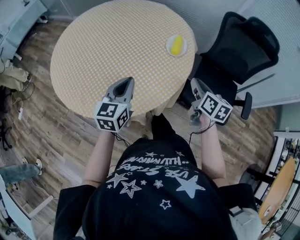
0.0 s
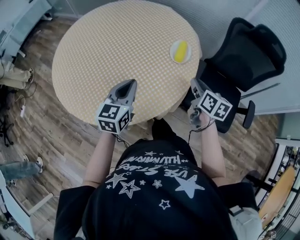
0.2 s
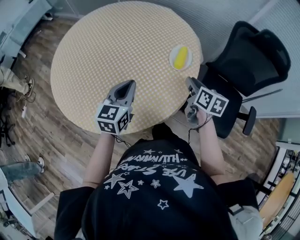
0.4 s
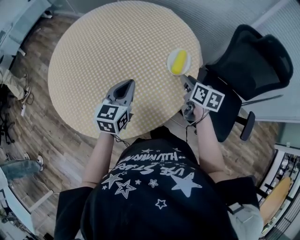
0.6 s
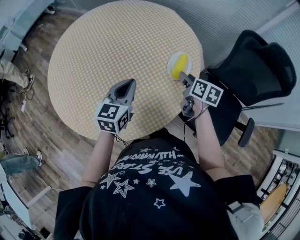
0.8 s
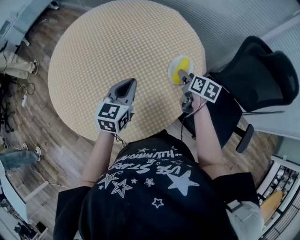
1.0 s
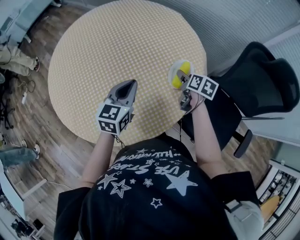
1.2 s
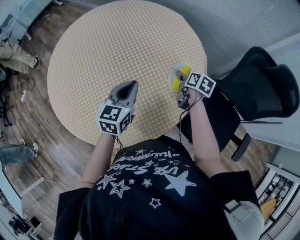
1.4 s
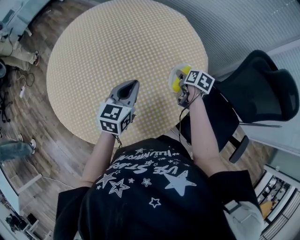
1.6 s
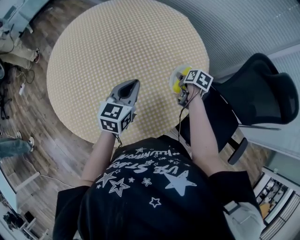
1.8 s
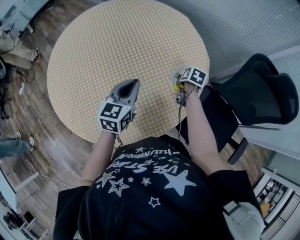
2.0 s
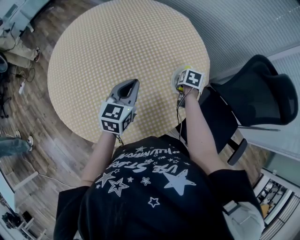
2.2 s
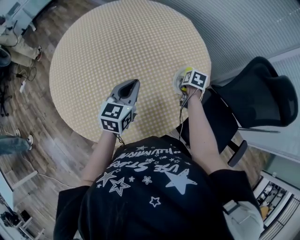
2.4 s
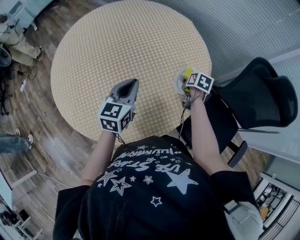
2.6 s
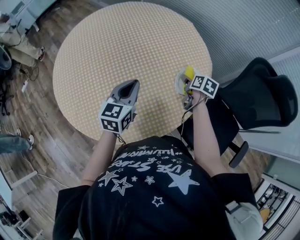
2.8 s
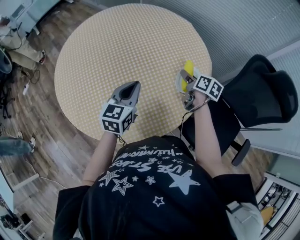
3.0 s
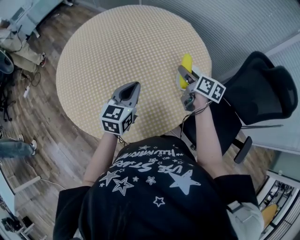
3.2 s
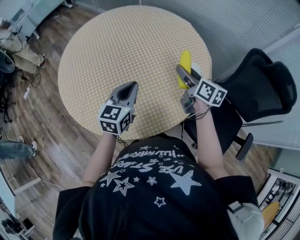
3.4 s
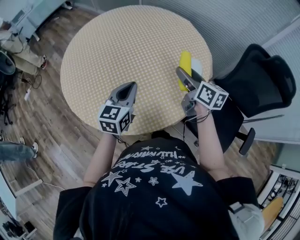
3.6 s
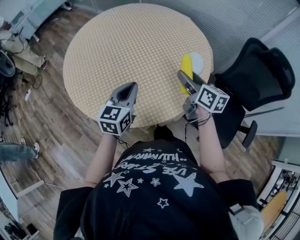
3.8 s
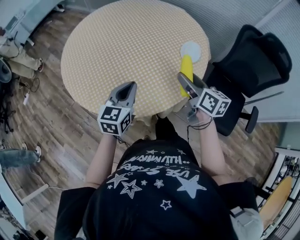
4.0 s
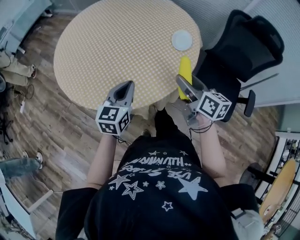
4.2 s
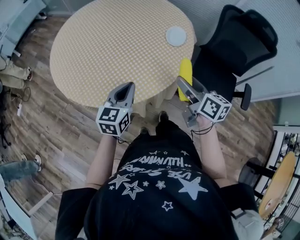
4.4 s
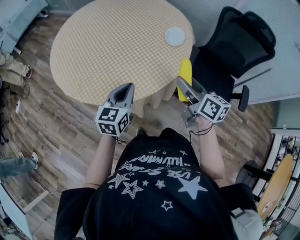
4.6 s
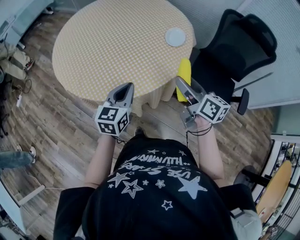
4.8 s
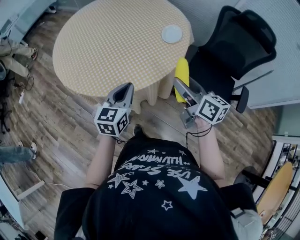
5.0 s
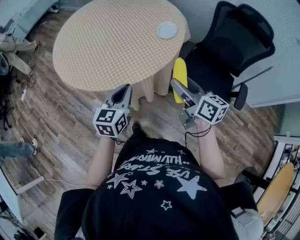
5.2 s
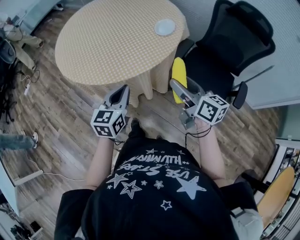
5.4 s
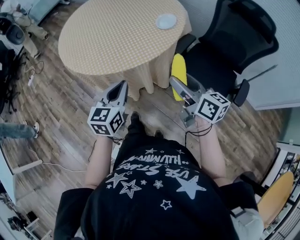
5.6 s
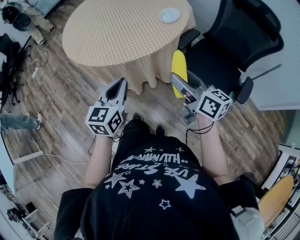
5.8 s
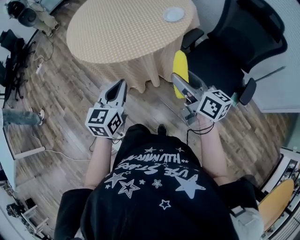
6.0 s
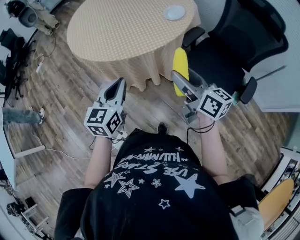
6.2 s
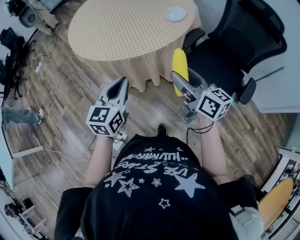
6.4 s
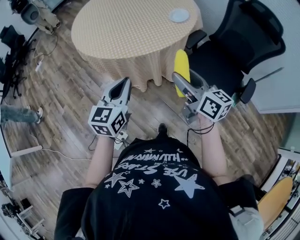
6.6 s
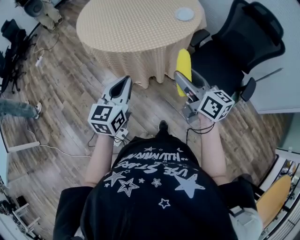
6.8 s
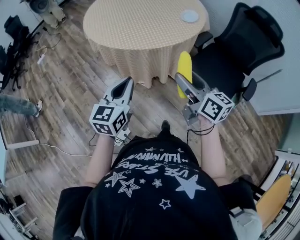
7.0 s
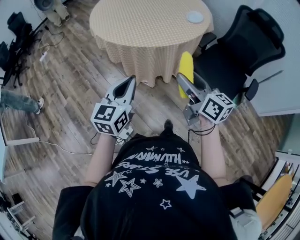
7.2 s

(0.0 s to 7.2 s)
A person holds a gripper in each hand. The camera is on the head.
0.0 s - 1.4 s: The left gripper goes some 20 cm forward. Meanwhile the right gripper goes approximately 30 cm forward and downward, swivels roughly 30 degrees, and opens up.
2.8 s - 4.4 s: The left gripper heads backward, covering roughly 25 cm. The right gripper moves backward and upward, about 40 cm, and tips its fingers upward by roughly 30 degrees.
4.4 s - 5.8 s: The grippers both shift backward and to the right by about 20 cm. The right gripper changes its angle by some 20 degrees.
5.8 s - 7.2 s: The grippers both shift to the left and backward by some 20 cm.

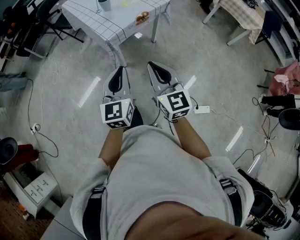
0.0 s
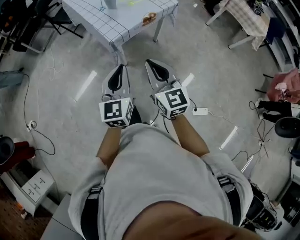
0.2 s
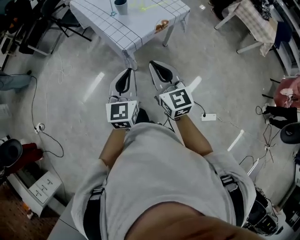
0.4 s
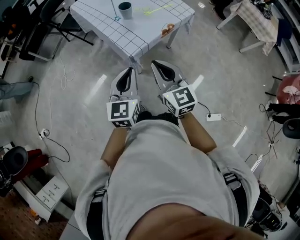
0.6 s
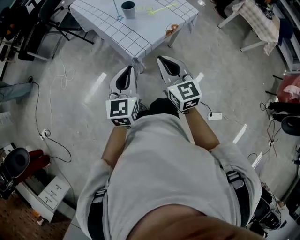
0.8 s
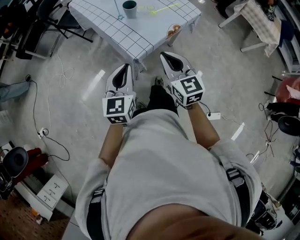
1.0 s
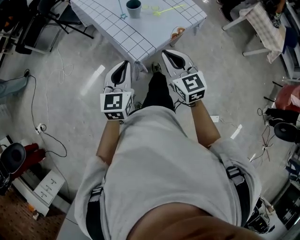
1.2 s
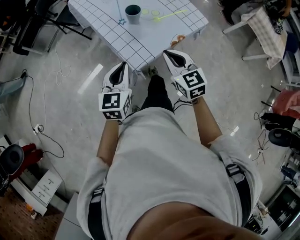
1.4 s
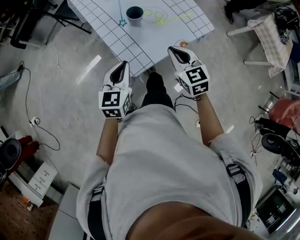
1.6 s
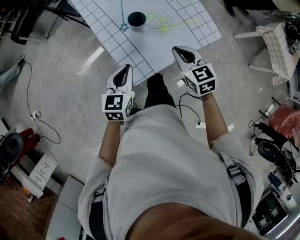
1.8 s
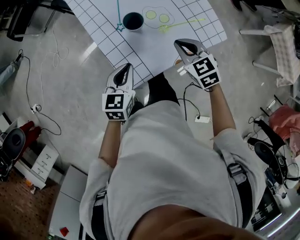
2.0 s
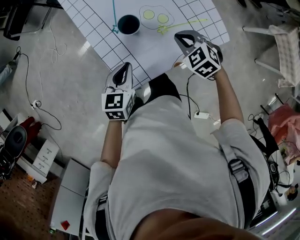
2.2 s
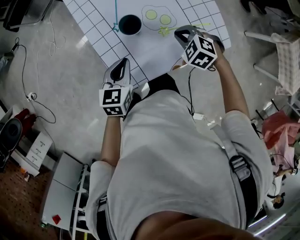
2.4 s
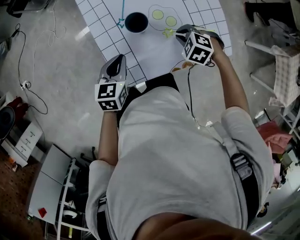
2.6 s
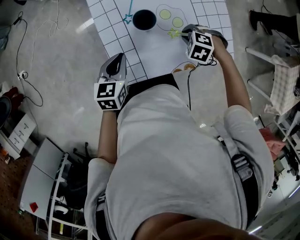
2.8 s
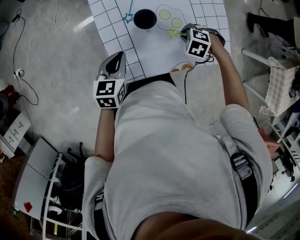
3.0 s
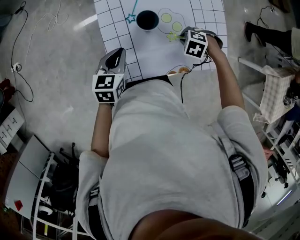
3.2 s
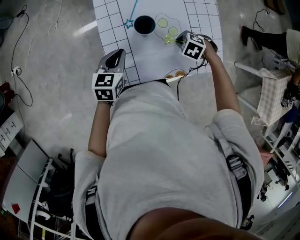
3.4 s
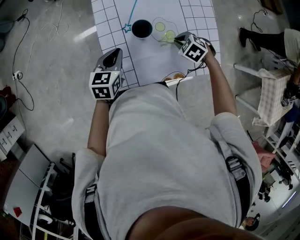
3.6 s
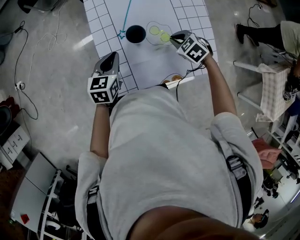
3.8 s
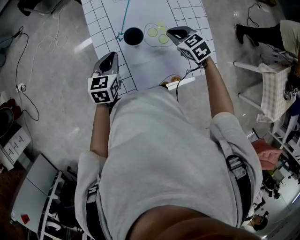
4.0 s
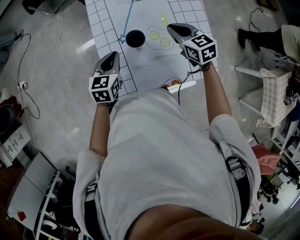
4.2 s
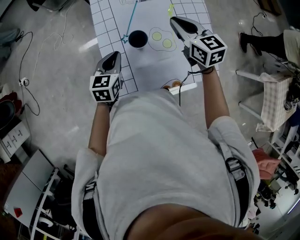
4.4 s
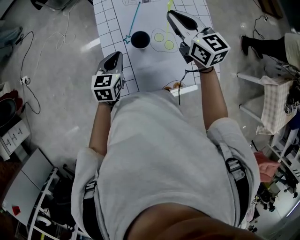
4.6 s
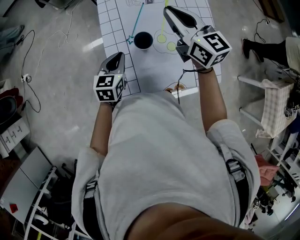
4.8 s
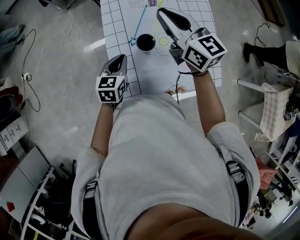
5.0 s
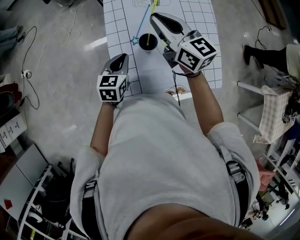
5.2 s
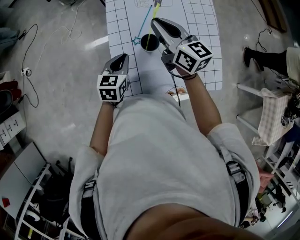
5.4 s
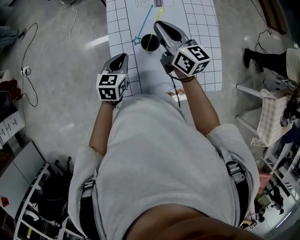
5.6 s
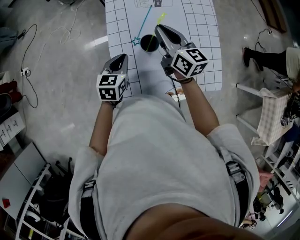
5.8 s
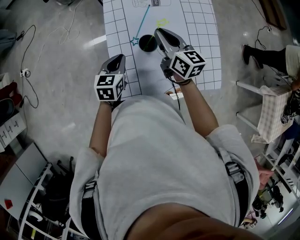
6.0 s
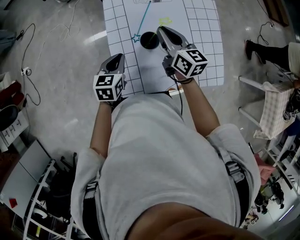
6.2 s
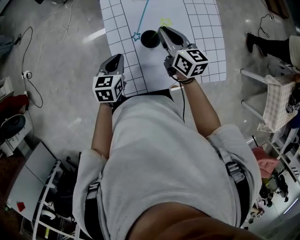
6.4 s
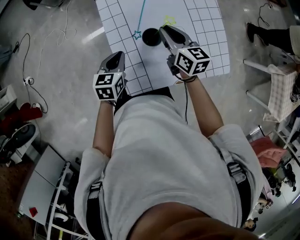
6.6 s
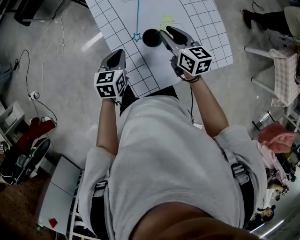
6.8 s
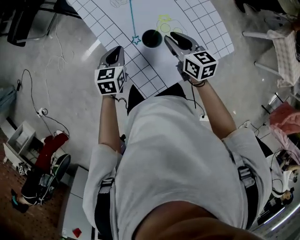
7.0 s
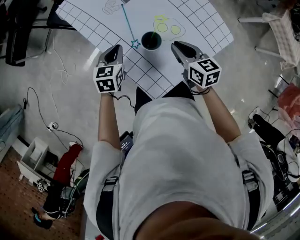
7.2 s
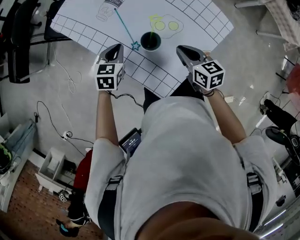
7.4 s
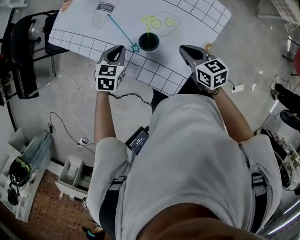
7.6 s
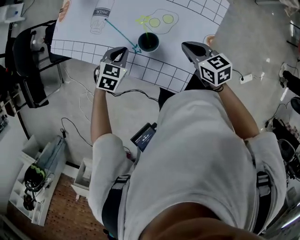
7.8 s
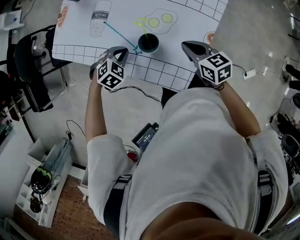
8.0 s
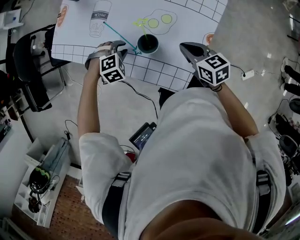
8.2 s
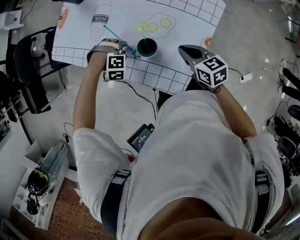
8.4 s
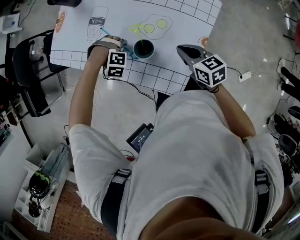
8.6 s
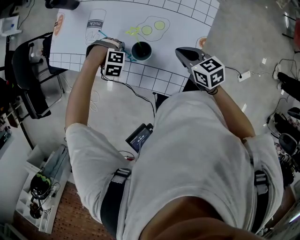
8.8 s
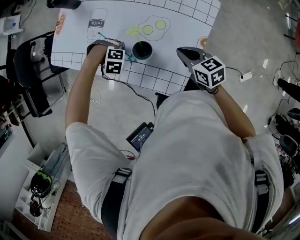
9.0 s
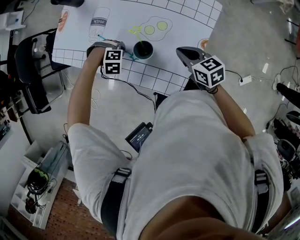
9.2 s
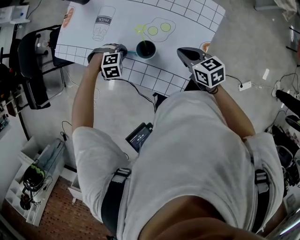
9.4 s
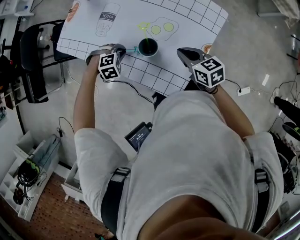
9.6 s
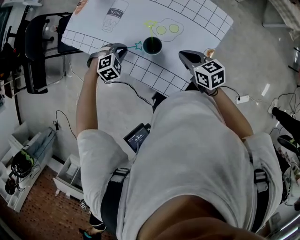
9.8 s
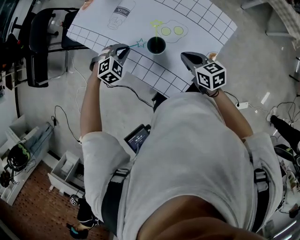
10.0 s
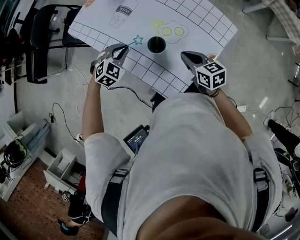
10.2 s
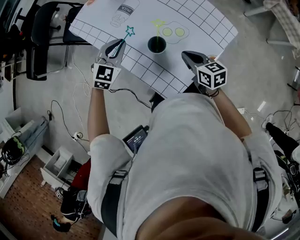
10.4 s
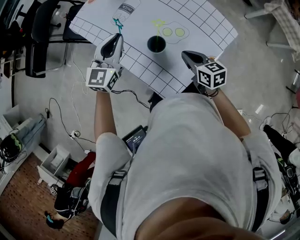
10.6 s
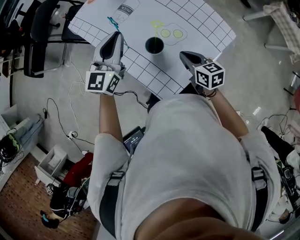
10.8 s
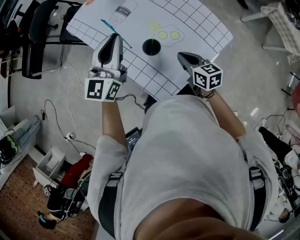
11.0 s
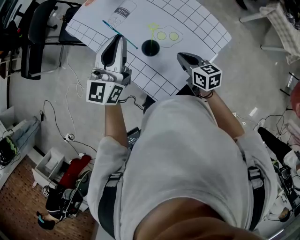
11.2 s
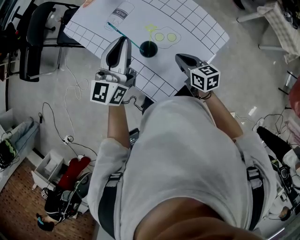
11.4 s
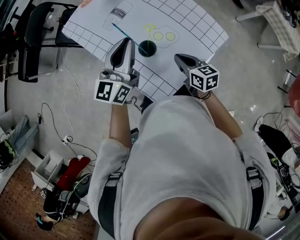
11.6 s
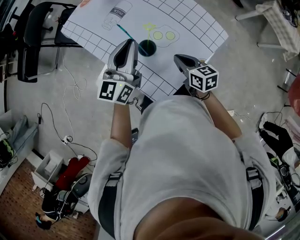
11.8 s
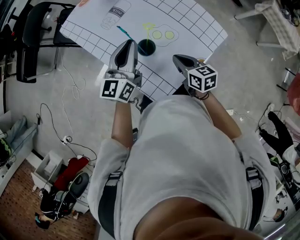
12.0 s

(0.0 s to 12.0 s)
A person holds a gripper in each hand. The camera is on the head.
0.0 s - 1.6 s: Both grippers are carried forward, approximately 40 cm. The right gripper swivels roughly 30 degrees.
1.6 s - 3.0 s: The left gripper moves about 15 cm, and changes its angle by roughly 30 degrees. The right gripper travels downward by roughly 20 cm, and points its fingers approximately 50 degrees further downward.
3.0 s - 4.4 s: The left gripper changes place by roughly 5 cm. The right gripper heads upward, covering approximately 25 cm, and angles its fingers upward, by about 60 degrees.
4.4 s - 6.0 s: The right gripper shifts approximately 10 cm to the left, goes upward and returns, roughly 10 cm each way, and rotates some 20 degrees.
6.0 s - 7.6 s: The right gripper changes place by roughly 15 cm, rotates approximately 40 degrees, and opens and closes again; the left gripper moves roughly 15 cm, and rotates approximately 60 degrees.
7.6 s - 9.0 s: The left gripper shifts roughly 10 cm downward, rolls clockwise, seen from behind, by approximately 90 degrees, and opens, then closes again.
9.0 s - 10.4 s: The left gripper shifts about 20 cm upward, and angles its fingers upward, by about 60 degrees.
10.4 s - 12.0 s: The left gripper goes approximately 10 cm upward and to the right, and points its fingers some 30 degrees further upward.

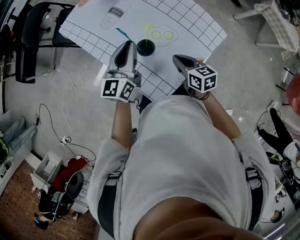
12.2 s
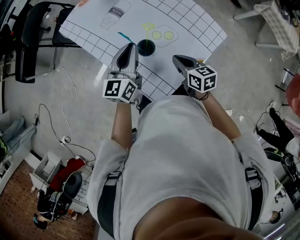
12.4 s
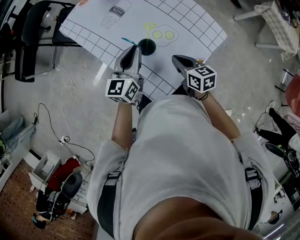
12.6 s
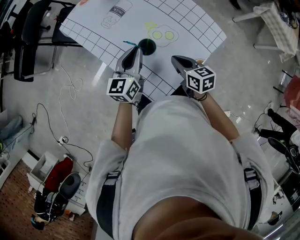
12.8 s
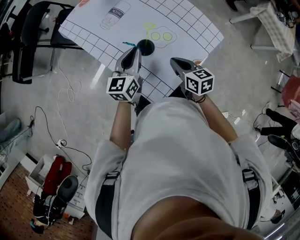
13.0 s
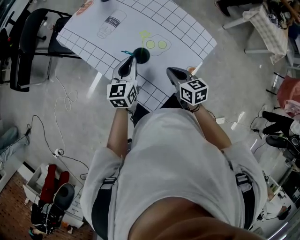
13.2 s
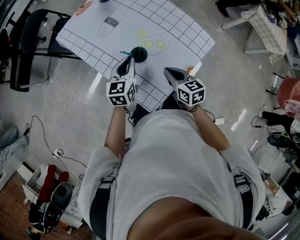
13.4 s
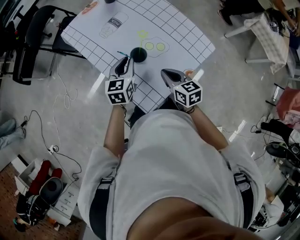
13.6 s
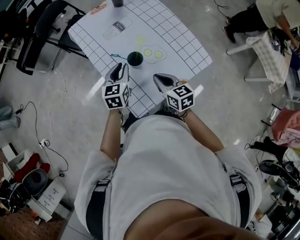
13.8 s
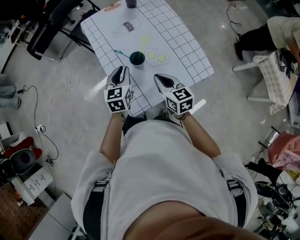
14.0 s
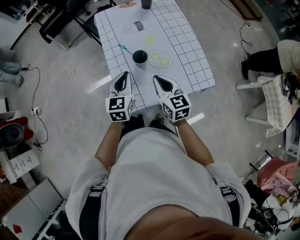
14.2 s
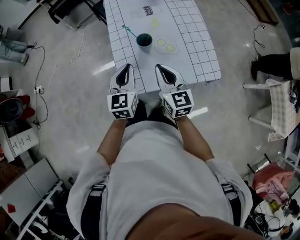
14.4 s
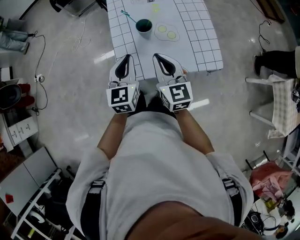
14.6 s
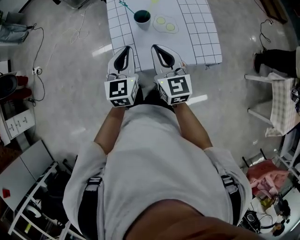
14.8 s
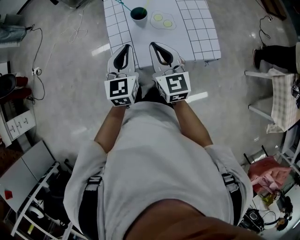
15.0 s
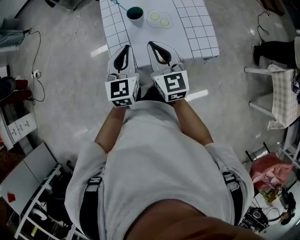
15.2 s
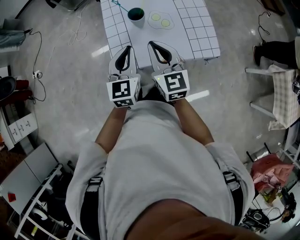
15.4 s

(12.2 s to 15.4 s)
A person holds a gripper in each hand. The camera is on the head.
12.2 s - 13.8 s: The left gripper heads downward and backward, covering roughly 10 cm, and rotates about 30 degrees. The right gripper changes place by roughly 5 cm.
13.8 s - 15.4 s: The left gripper heads backward, covering about 20 cm, and rotates approximately 30 degrees. Meanwhile the right gripper goes approximately 10 cm upward and backward, and rotates roughly 30 degrees.

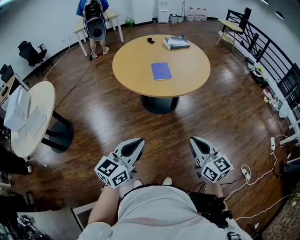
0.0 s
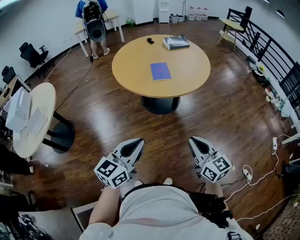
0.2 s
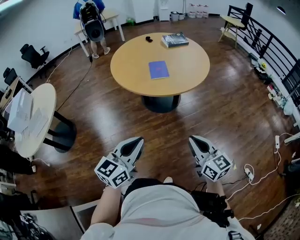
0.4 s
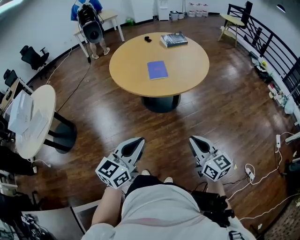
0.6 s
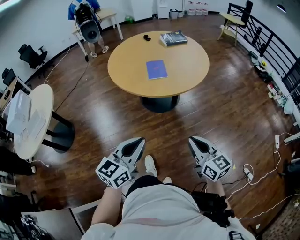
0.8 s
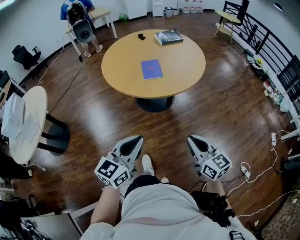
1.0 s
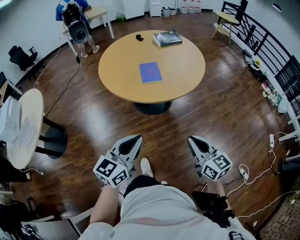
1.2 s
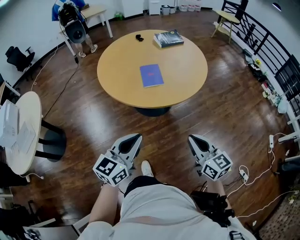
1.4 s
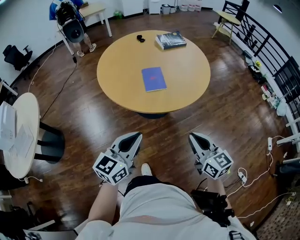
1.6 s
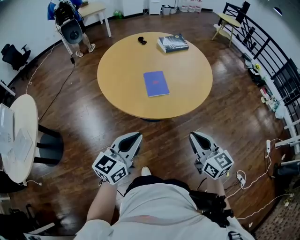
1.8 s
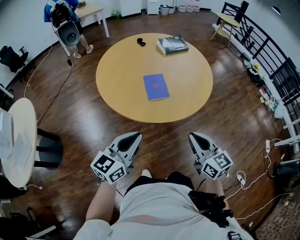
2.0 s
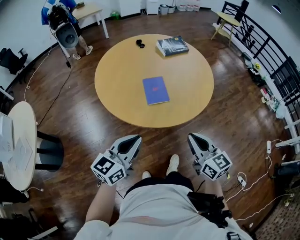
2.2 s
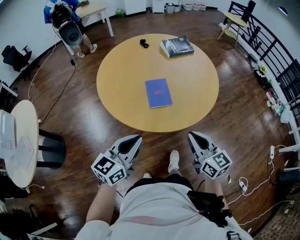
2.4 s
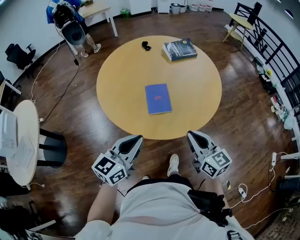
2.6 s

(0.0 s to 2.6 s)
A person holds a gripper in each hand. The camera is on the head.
0.0 s - 1.2 s: The grippers both shift forward and to the right by some 15 cm.
1.2 s - 2.6 s: The two grippers go about 30 cm forward.
